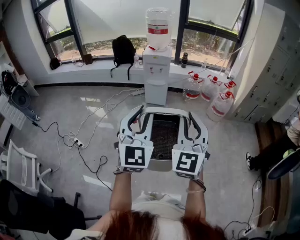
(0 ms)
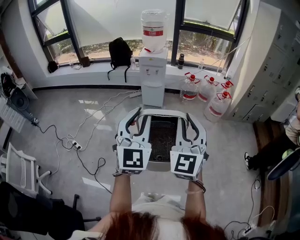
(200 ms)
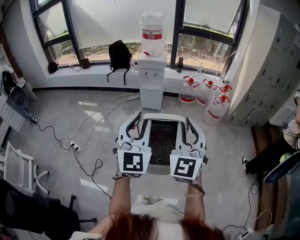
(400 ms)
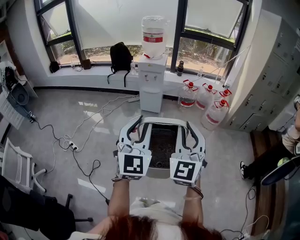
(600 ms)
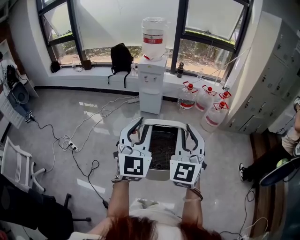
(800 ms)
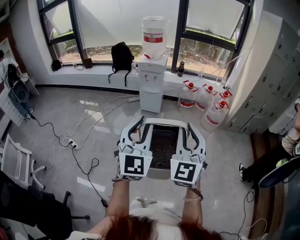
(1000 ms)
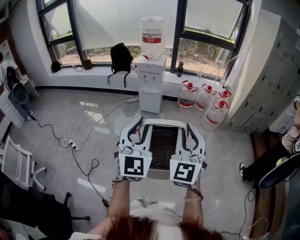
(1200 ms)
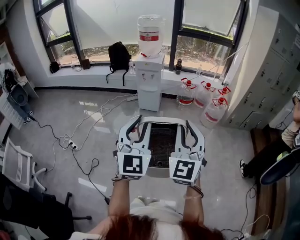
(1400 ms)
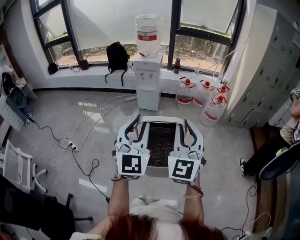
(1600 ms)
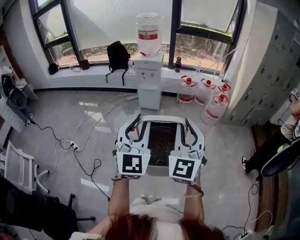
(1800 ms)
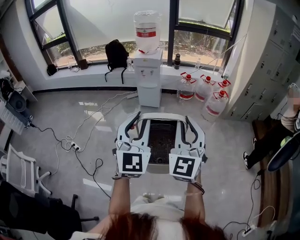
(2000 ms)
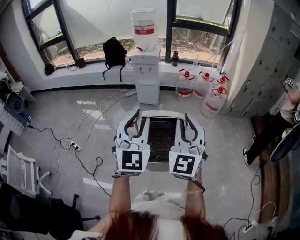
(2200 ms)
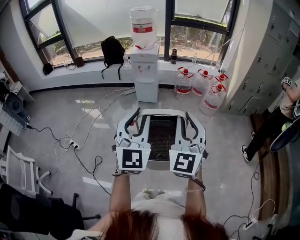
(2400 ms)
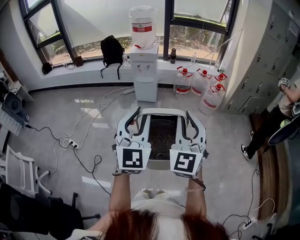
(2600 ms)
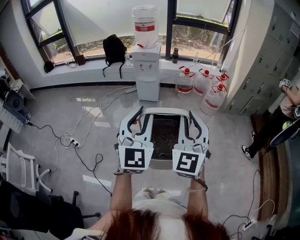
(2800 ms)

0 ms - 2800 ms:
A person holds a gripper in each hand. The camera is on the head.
0 ms - 1400 ms: Both grippers travel together to the right, about 10 cm.
1400 ms - 2800 ms: The grippers move only a little.

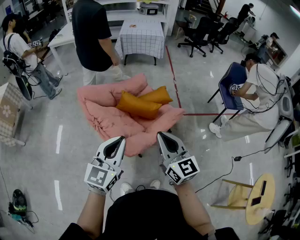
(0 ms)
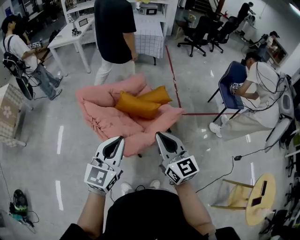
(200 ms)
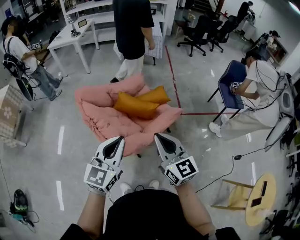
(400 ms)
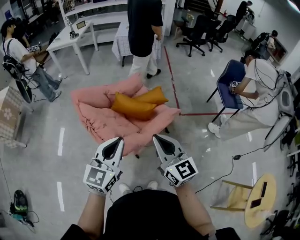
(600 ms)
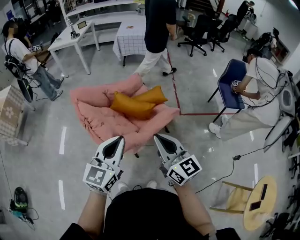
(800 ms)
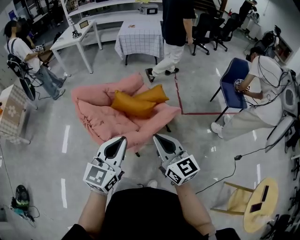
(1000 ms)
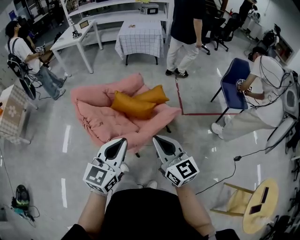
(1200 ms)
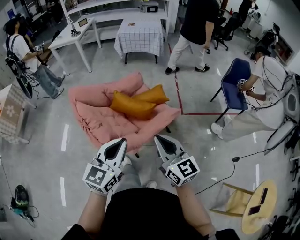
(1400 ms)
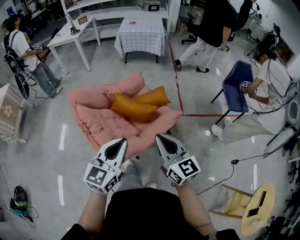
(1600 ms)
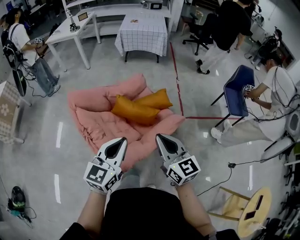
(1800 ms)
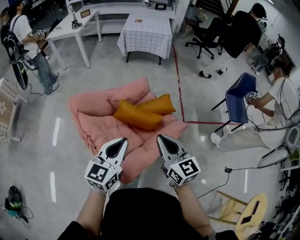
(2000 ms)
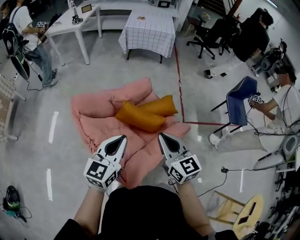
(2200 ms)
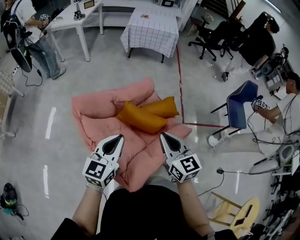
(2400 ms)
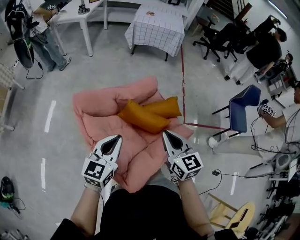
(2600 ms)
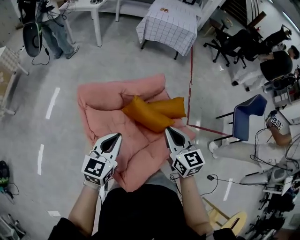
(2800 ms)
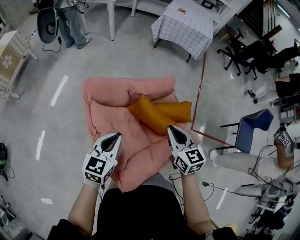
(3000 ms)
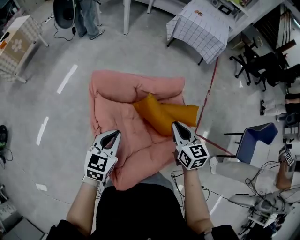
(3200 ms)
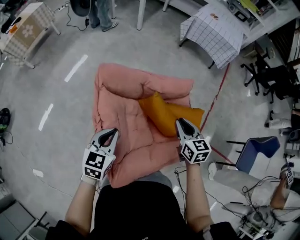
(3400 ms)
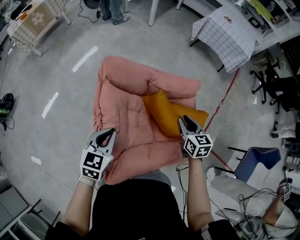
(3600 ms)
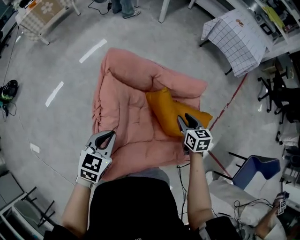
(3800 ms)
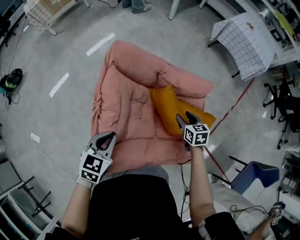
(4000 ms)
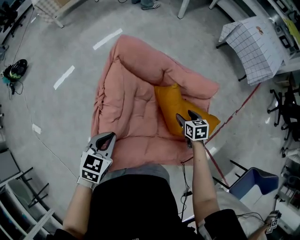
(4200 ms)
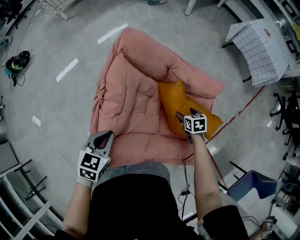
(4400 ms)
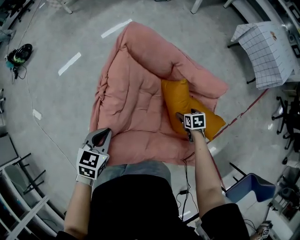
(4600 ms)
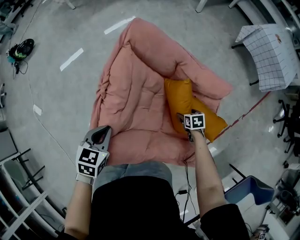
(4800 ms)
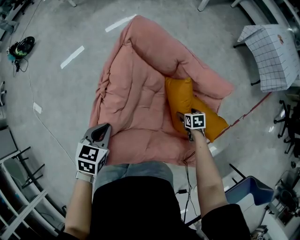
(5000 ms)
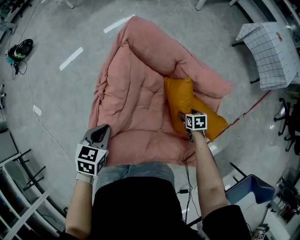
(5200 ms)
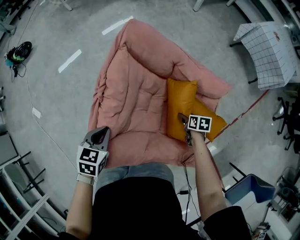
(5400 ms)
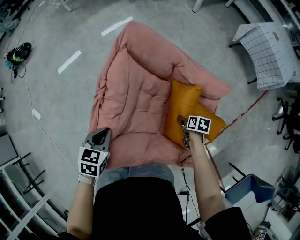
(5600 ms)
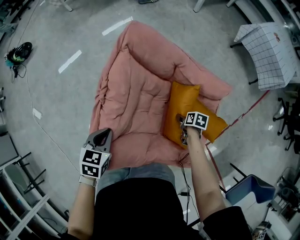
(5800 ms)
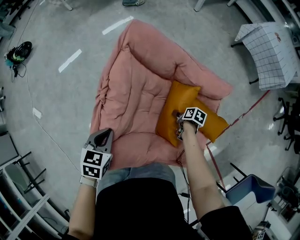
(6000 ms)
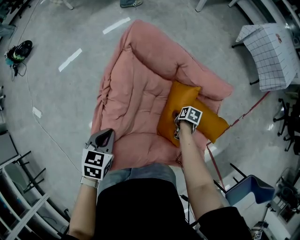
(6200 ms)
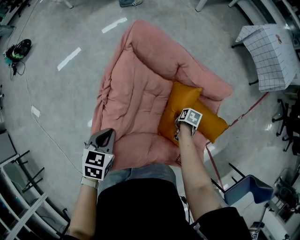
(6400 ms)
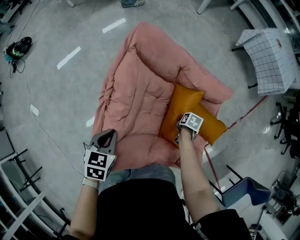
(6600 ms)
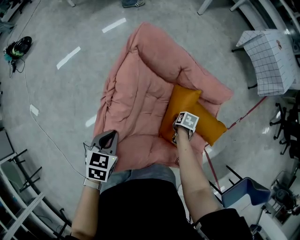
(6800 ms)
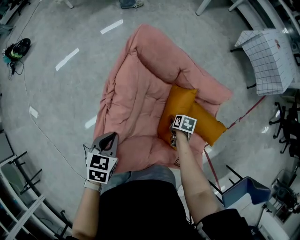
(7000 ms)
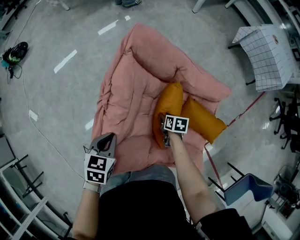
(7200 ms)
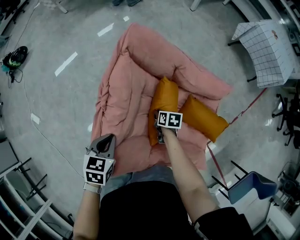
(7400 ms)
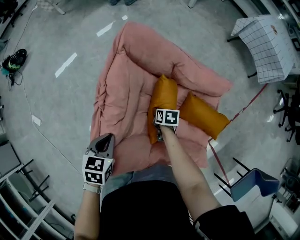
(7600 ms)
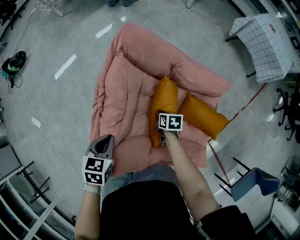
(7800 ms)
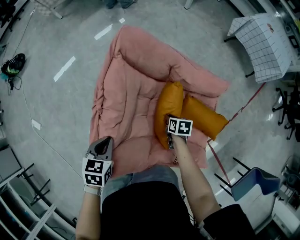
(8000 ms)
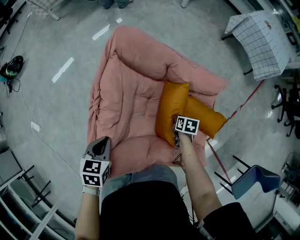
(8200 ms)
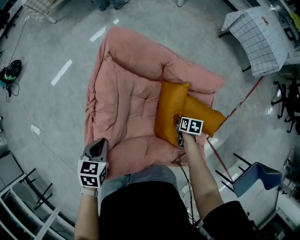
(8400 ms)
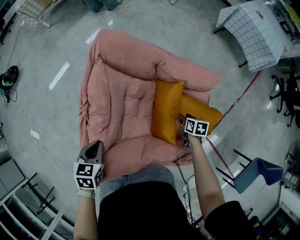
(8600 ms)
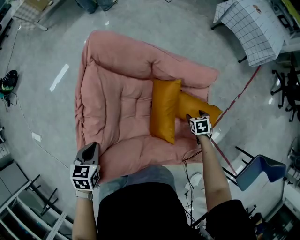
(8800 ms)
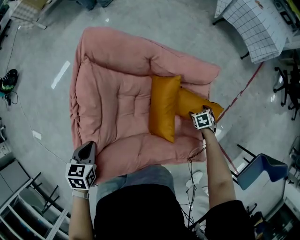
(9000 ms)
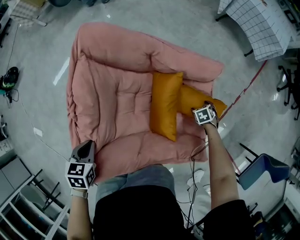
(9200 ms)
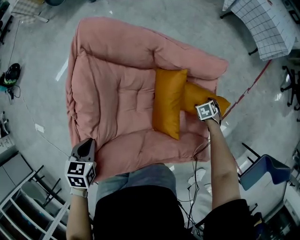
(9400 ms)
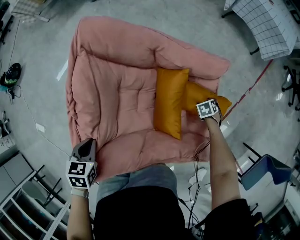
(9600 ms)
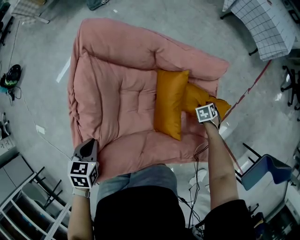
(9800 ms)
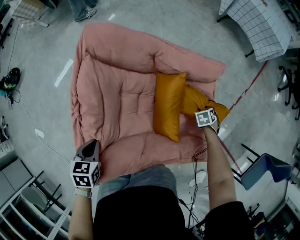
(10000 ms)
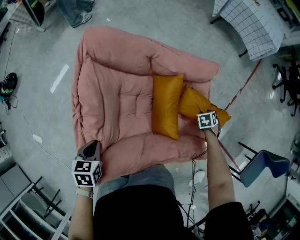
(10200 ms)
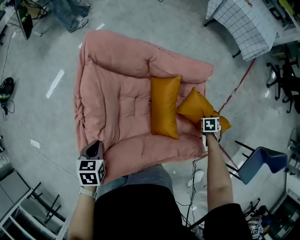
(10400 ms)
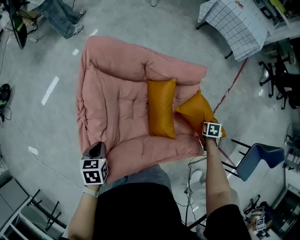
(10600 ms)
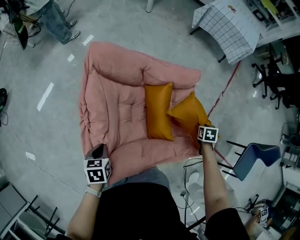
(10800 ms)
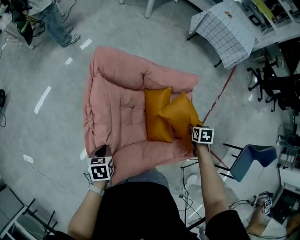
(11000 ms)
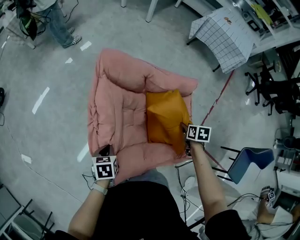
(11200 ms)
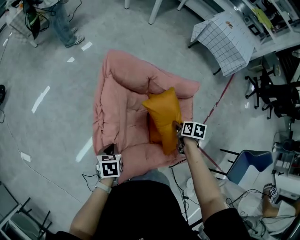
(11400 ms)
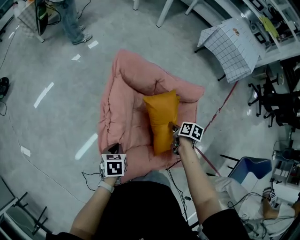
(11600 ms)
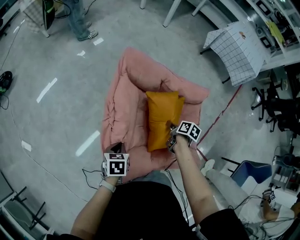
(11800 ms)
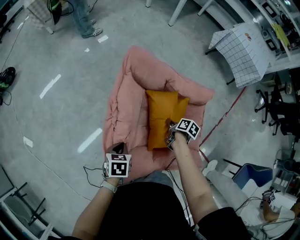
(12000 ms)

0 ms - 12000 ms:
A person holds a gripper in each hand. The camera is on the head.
0 ms - 1600 ms: Both grippers move to the right, about 10 cm.
1600 ms - 3000 ms: The left gripper travels forward, to the left and downward by roughly 30 cm, and rotates approximately 20 degrees. The right gripper is displaced forward and to the left by roughly 30 cm, and turns by some 20 degrees.
3000 ms - 4400 ms: The left gripper heads downward, covering about 10 cm, and changes its angle by some 40 degrees. Meanwhile the right gripper travels downward by some 35 cm, points its fingers about 40 degrees further downward, and opens.
4400 ms - 6000 ms: The right gripper is displaced downward by roughly 10 cm, and rolls clockwise, seen from behind, by roughly 40 degrees.
6000 ms - 7600 ms: The right gripper moves about 15 cm, swivels approximately 20 degrees, and closes its fingers.
7600 ms - 9000 ms: The right gripper changes place by about 35 cm, changes its angle by about 40 degrees, and opens.
9000 ms - 10400 ms: The right gripper ends up roughly 10 cm from where it was, turns by roughly 20 degrees, and closes its fingers.
10400 ms - 12000 ms: The right gripper ends up some 30 cm from where it was, and changes its angle by about 60 degrees.

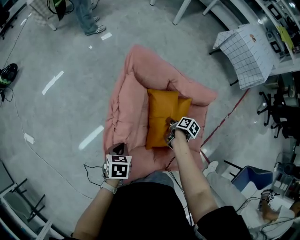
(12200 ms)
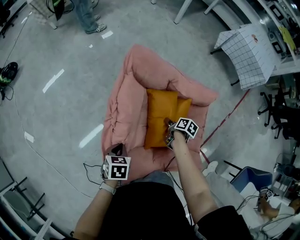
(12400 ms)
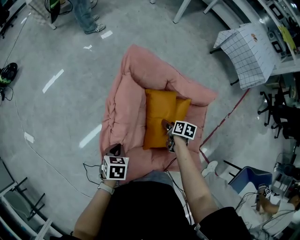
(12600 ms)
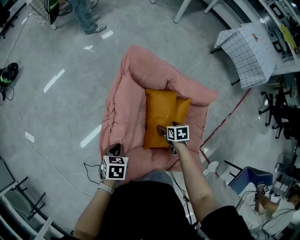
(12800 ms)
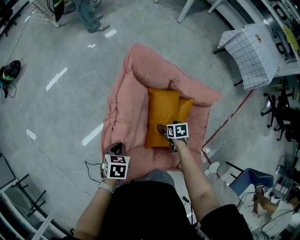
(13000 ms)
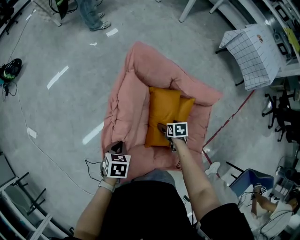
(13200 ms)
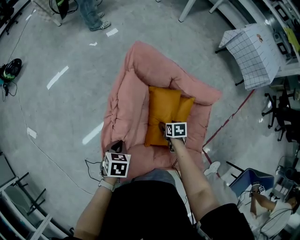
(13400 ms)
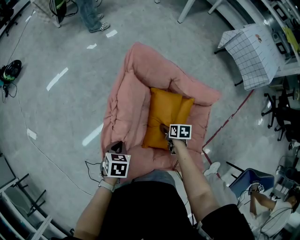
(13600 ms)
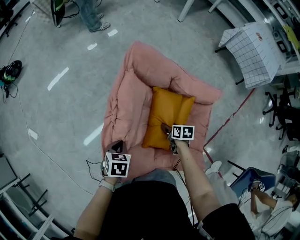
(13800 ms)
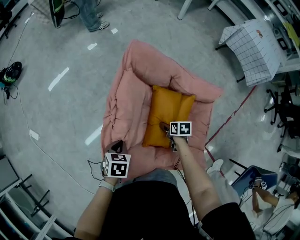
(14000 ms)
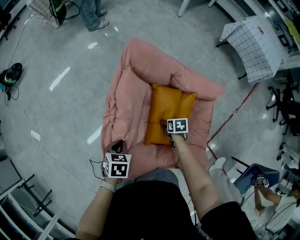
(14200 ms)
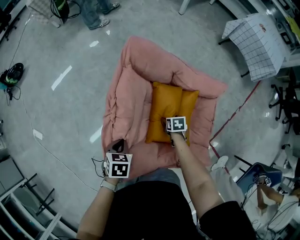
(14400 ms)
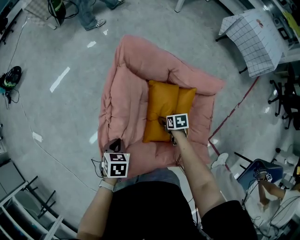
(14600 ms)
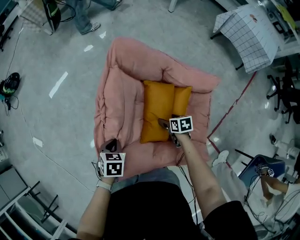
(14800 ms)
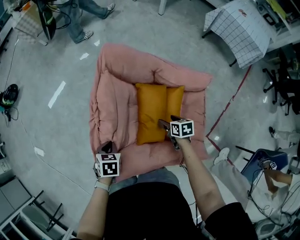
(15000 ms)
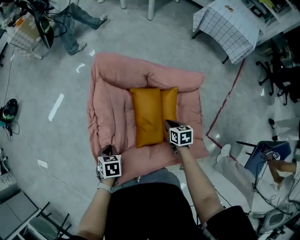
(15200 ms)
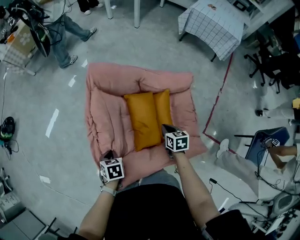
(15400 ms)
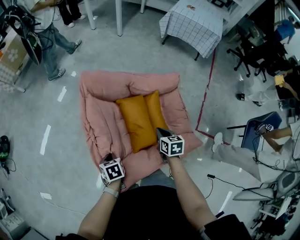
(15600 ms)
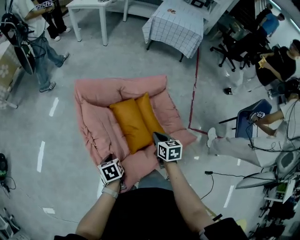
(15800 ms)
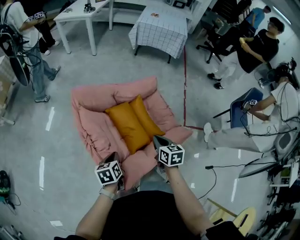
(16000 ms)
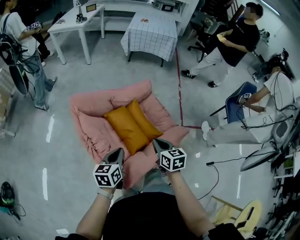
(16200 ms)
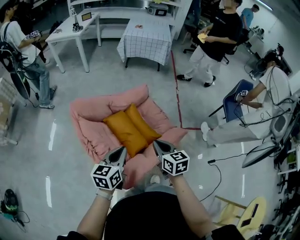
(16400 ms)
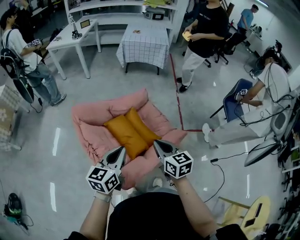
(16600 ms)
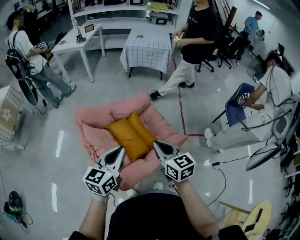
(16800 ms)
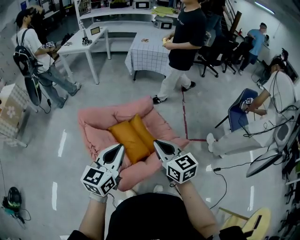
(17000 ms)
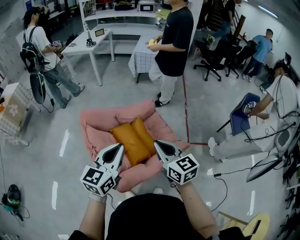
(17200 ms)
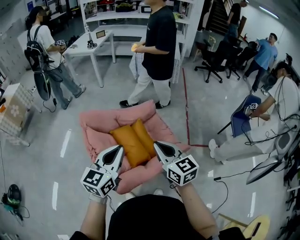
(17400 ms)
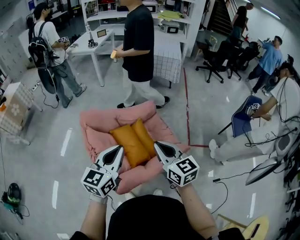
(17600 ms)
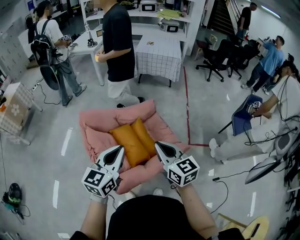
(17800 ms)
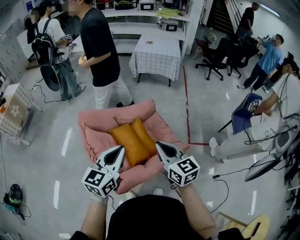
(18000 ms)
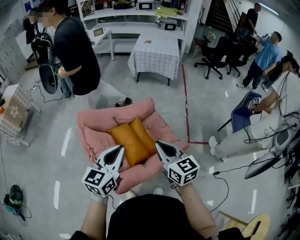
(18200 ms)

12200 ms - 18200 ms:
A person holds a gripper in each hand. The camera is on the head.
12200 ms - 13800 ms: The right gripper turns by approximately 40 degrees.
13800 ms - 15200 ms: The right gripper moves upward and to the right, approximately 10 cm, and closes its fingers.
15200 ms - 16600 ms: The two grippers go roughly 30 cm upward. The right gripper changes its angle by approximately 40 degrees. The left gripper tilts its fingers about 50 degrees upward.
16600 ms - 18200 ms: Both grippers travel together upward, approximately 10 cm.

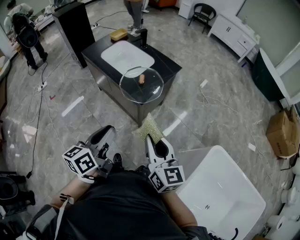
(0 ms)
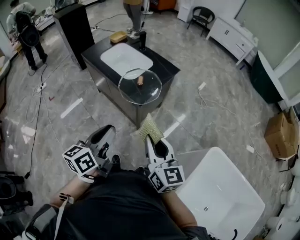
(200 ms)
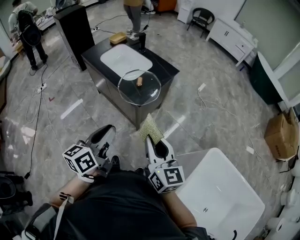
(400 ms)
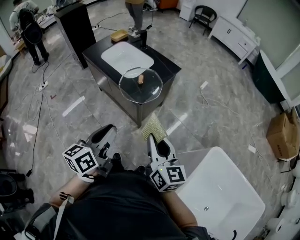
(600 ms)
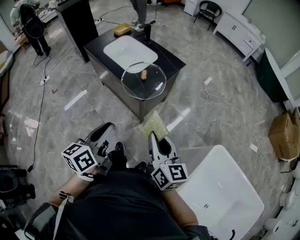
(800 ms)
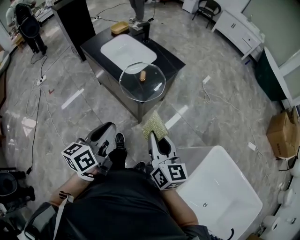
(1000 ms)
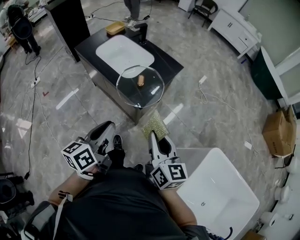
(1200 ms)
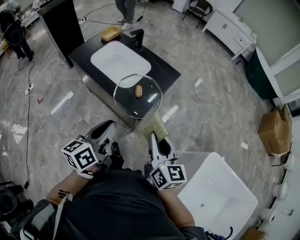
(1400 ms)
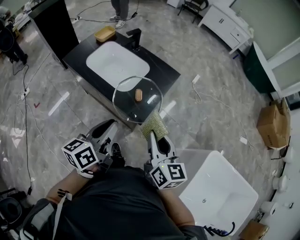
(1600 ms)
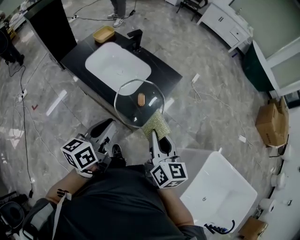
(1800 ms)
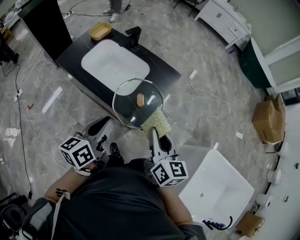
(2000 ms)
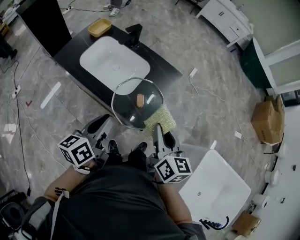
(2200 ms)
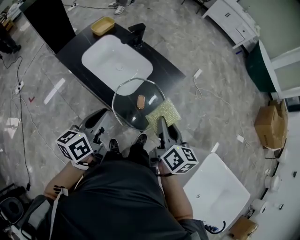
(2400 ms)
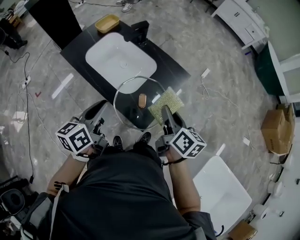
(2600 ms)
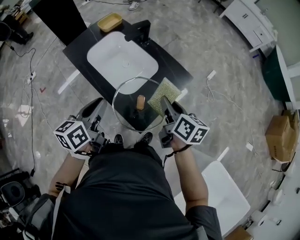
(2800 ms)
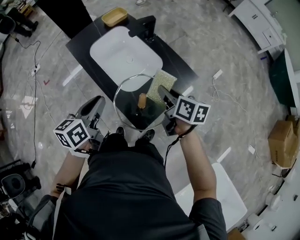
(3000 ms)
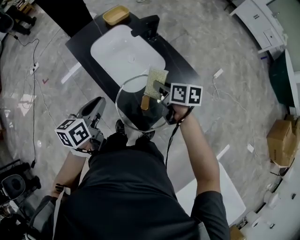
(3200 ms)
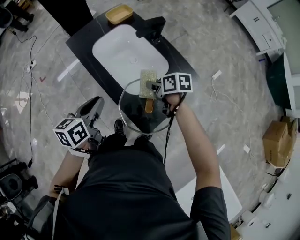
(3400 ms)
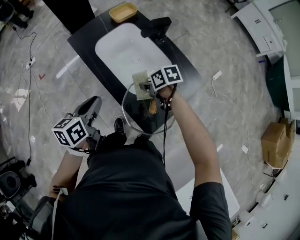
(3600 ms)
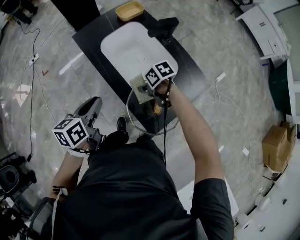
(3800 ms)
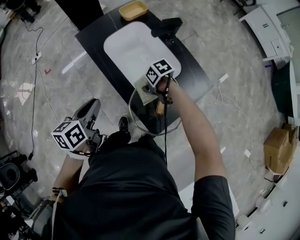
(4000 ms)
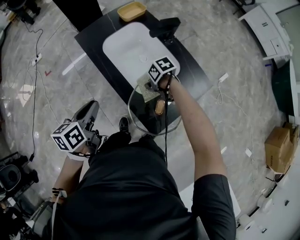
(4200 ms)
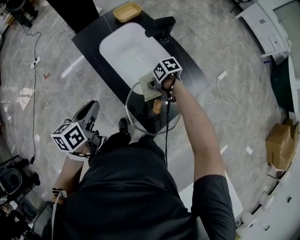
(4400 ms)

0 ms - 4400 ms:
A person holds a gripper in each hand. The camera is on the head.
0 ms - 1400 ms: The grippers both shift forward by some 15 cm.
1400 ms - 3000 ms: The left gripper ends up some 25 cm from where it was. Meanwhile the right gripper shifts by some 35 cm, and turns by about 40 degrees.
3000 ms - 4400 ms: The right gripper heads downward, covering about 20 cm, and changes its angle by approximately 60 degrees; the left gripper shifts by roughly 15 cm.
